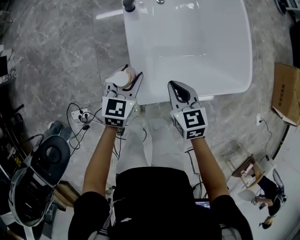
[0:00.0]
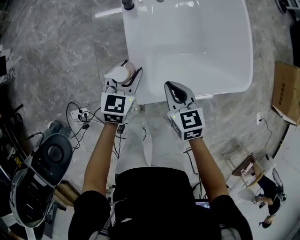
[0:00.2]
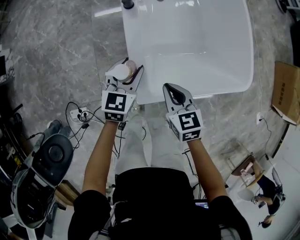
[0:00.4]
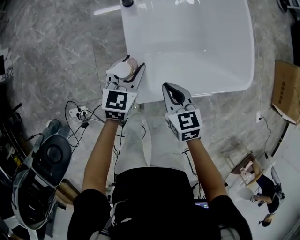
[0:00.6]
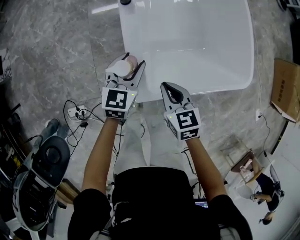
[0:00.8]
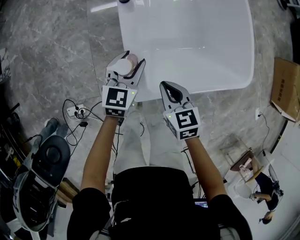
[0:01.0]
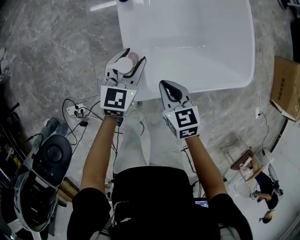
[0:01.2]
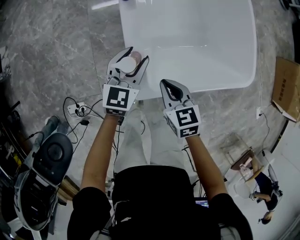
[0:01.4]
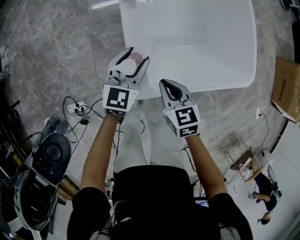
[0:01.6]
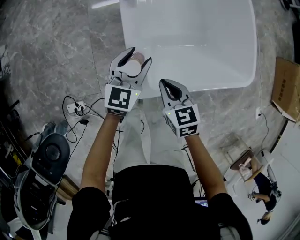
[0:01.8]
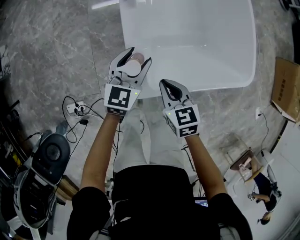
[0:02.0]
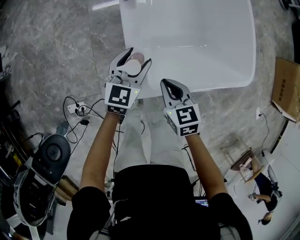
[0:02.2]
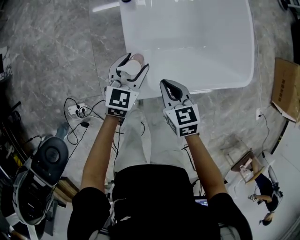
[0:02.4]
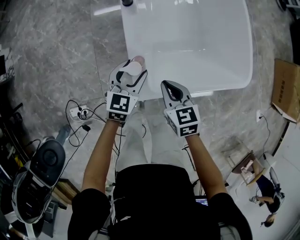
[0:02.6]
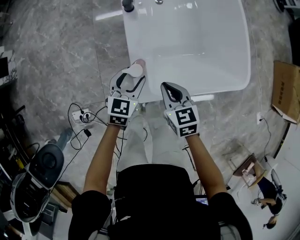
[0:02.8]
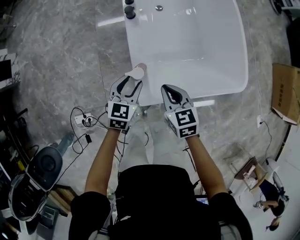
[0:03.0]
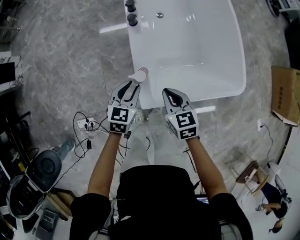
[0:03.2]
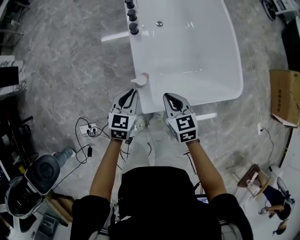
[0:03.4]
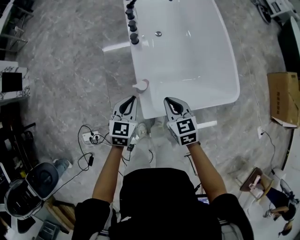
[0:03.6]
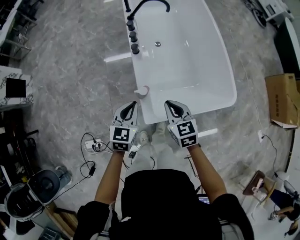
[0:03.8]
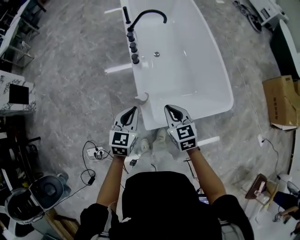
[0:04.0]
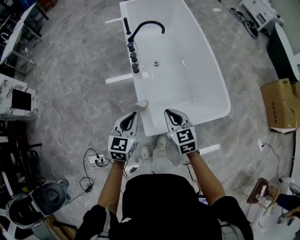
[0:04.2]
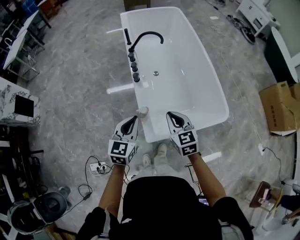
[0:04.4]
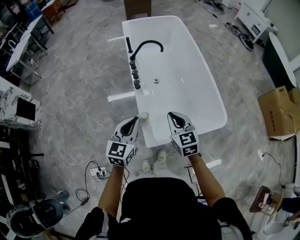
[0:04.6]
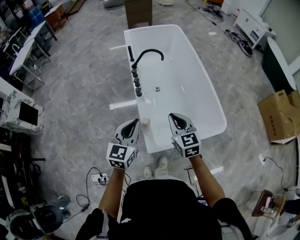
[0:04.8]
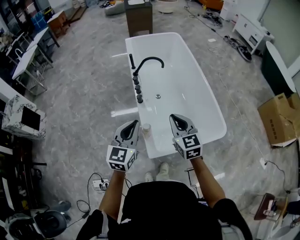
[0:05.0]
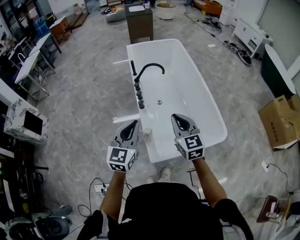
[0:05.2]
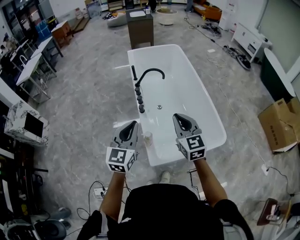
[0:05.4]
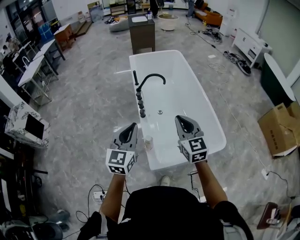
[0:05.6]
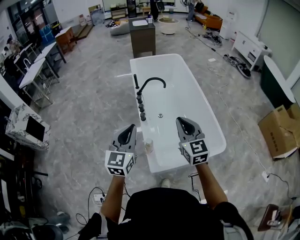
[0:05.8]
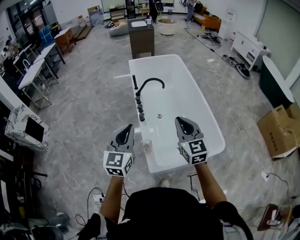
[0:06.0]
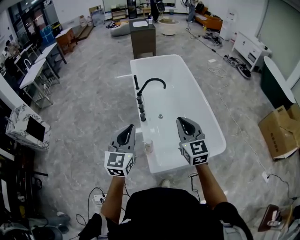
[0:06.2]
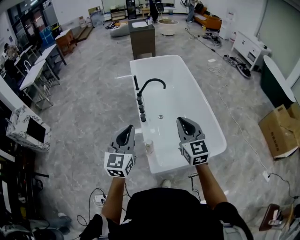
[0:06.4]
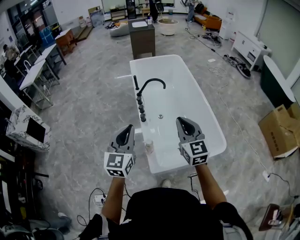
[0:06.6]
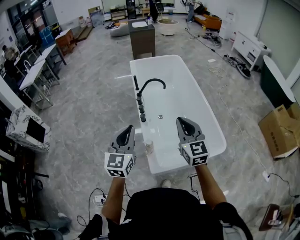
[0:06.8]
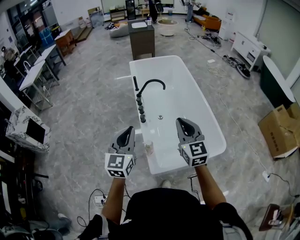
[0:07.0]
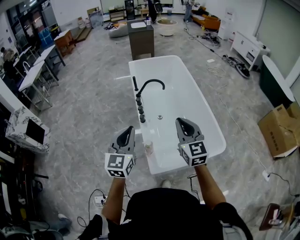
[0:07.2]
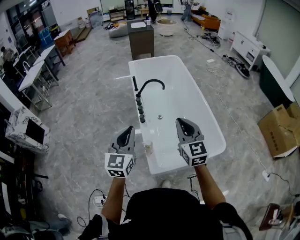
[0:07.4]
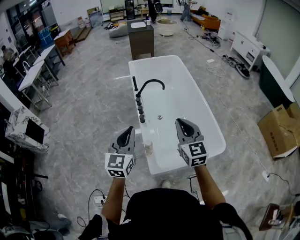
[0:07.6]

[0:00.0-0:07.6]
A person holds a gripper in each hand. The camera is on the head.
0:00.0 to 0:01.6: The left gripper ends up approximately 5 cm from where it was. Meanwhile the right gripper changes place by about 5 cm.
0:01.6 to 0:03.0: The left gripper shifts roughly 5 cm backward; the right gripper goes about 5 cm upward.
0:03.0 to 0:04.6: Both grippers travel together upward, approximately 30 cm. The left gripper swivels some 20 degrees, and closes up; the right gripper turns by some 20 degrees.
0:04.6 to 0:06.0: The two grippers go approximately 15 cm upward.
0:06.0 to 0:07.6: Both grippers stay about where they are.

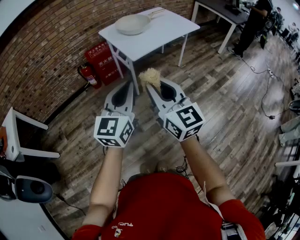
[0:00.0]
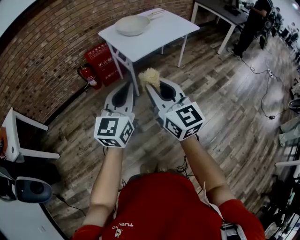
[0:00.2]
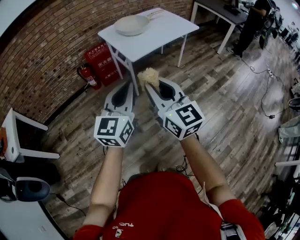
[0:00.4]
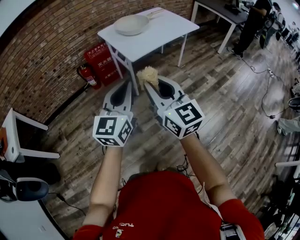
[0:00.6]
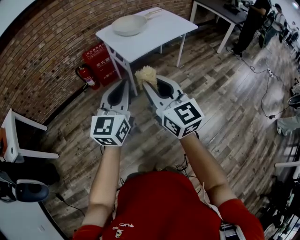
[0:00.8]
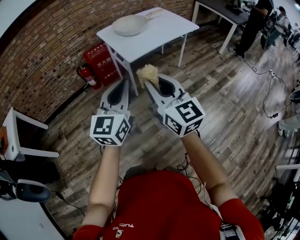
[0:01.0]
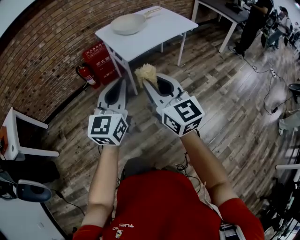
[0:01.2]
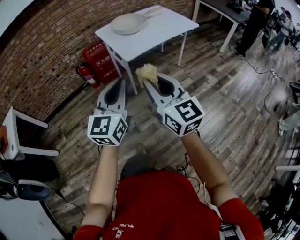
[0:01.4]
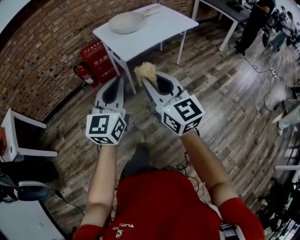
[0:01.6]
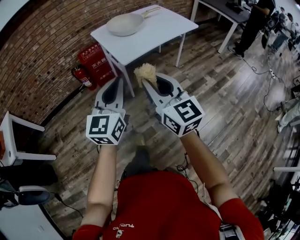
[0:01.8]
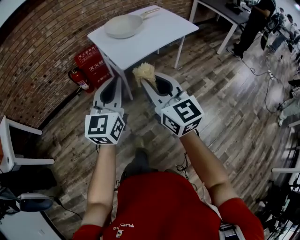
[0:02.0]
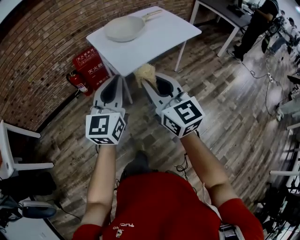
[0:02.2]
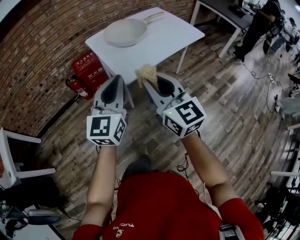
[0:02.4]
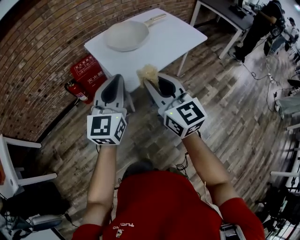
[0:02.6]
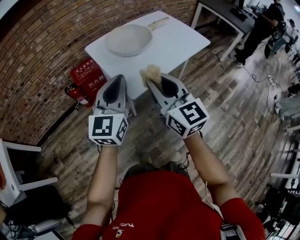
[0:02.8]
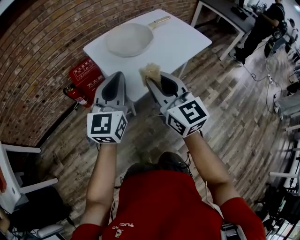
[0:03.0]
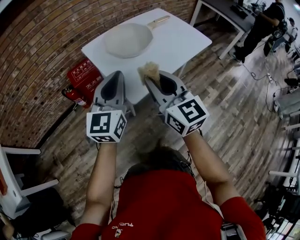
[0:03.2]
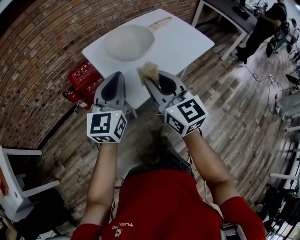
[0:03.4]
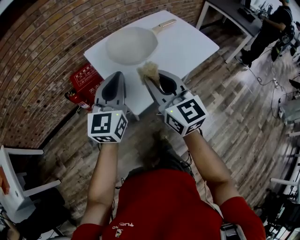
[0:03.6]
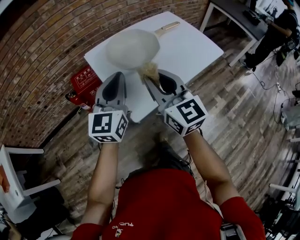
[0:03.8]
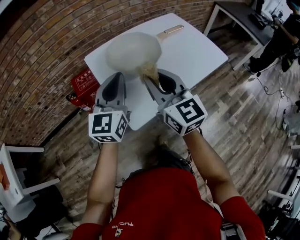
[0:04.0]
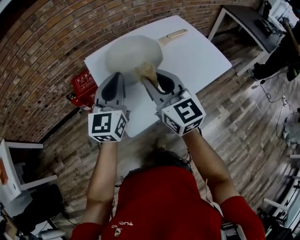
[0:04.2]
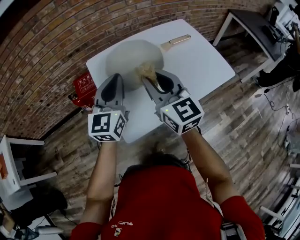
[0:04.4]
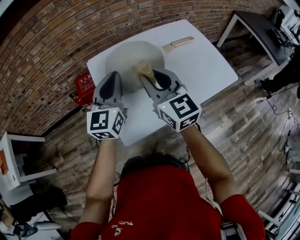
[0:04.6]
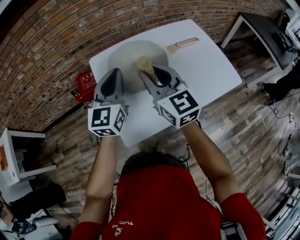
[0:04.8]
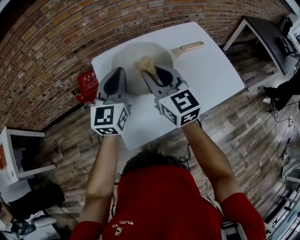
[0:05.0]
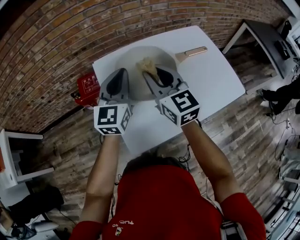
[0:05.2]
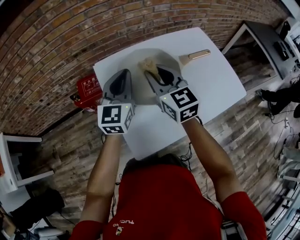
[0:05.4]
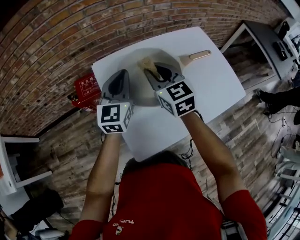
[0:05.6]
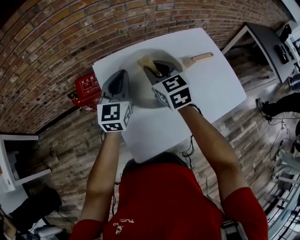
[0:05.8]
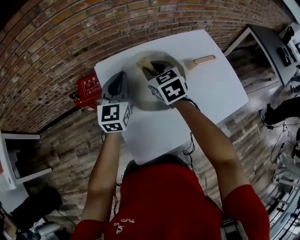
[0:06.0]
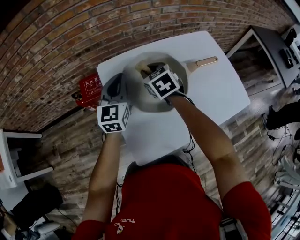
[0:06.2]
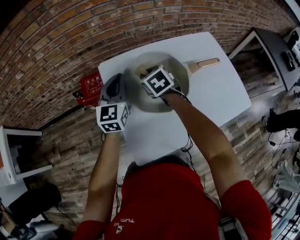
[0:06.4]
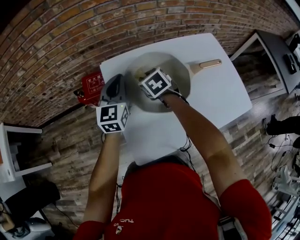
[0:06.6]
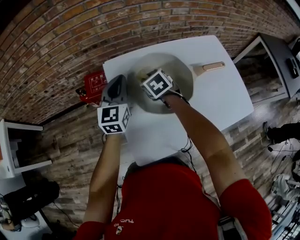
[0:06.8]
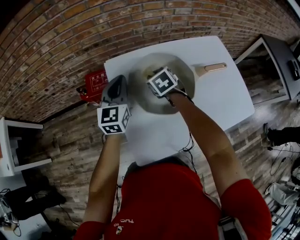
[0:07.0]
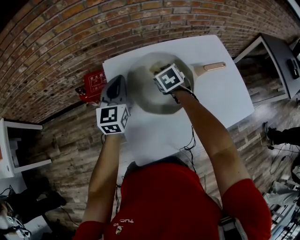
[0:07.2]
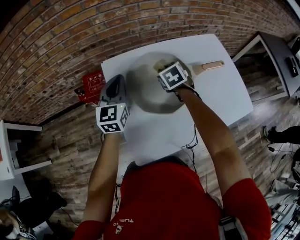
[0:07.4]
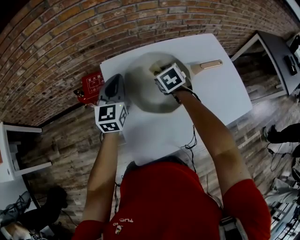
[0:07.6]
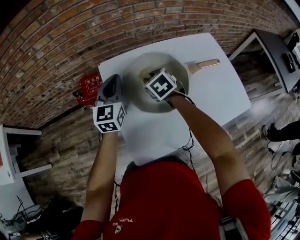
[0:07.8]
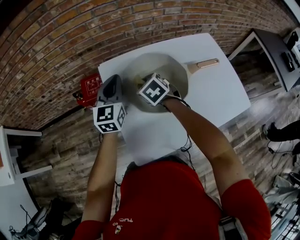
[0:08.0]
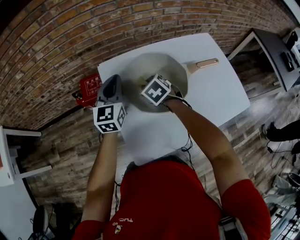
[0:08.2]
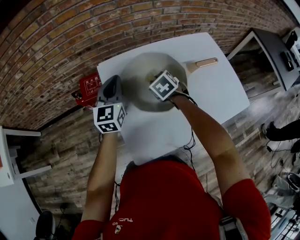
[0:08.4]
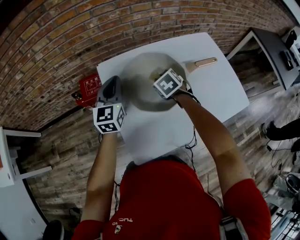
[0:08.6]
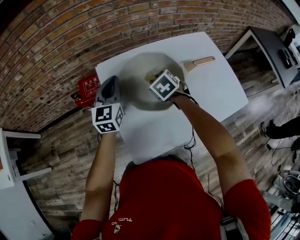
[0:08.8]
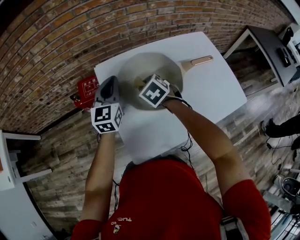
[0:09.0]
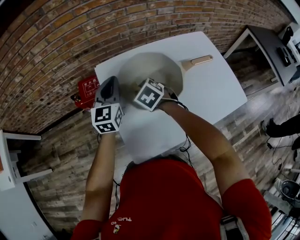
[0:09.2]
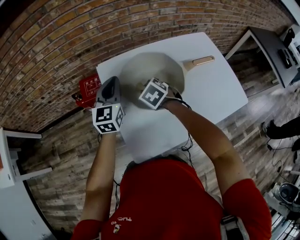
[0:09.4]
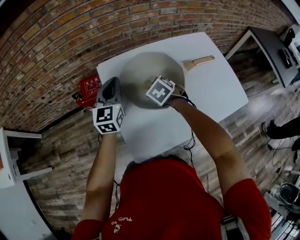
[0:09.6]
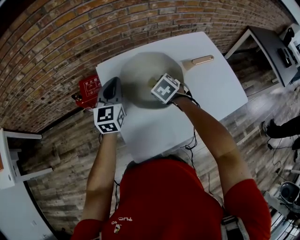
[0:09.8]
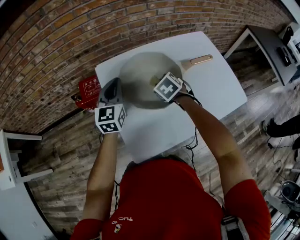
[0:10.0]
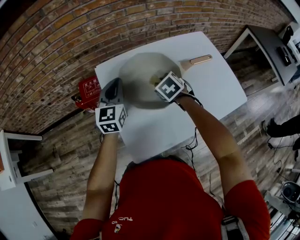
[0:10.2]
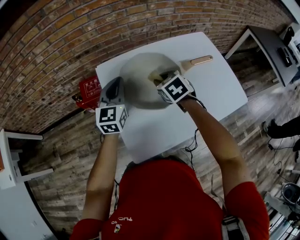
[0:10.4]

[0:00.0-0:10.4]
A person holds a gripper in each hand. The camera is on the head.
0:00.0 to 0:01.4: The right gripper shifts about 5 cm to the right.
0:01.4 to 0:03.0: Both grippers move forward, some 35 cm.
0:03.0 to 0:04.4: Both grippers move forward, about 25 cm.
0:04.4 to 0:06.0: The left gripper shifts roughly 20 cm forward. Meanwhile the right gripper heads forward and downward, covering approximately 25 cm, and points its fingers approximately 30 degrees further downward.
0:06.0 to 0:07.4: The right gripper is displaced downward and to the right by some 10 cm, and turns by some 20 degrees.
0:07.4 to 0:09.0: The right gripper goes left and right, approximately 10 cm each way, reversing 2 times.
0:09.0 to 0:10.4: The right gripper is displaced to the right by roughly 5 cm.

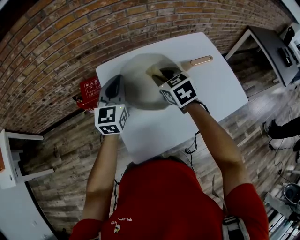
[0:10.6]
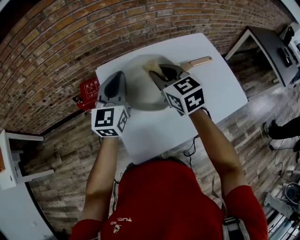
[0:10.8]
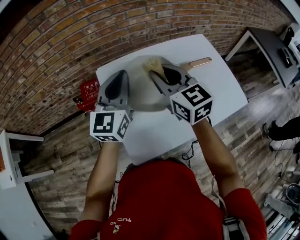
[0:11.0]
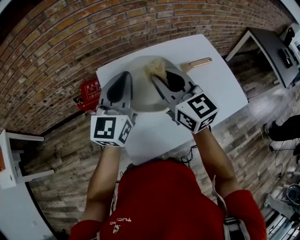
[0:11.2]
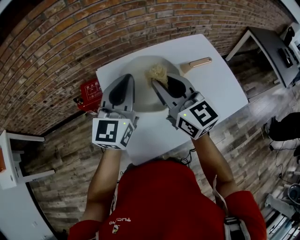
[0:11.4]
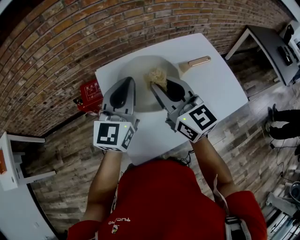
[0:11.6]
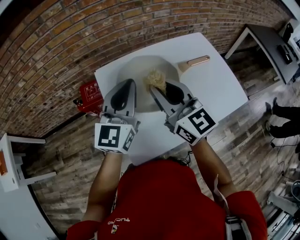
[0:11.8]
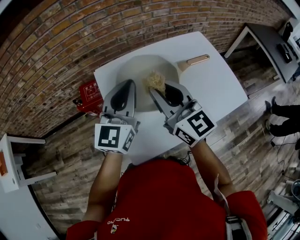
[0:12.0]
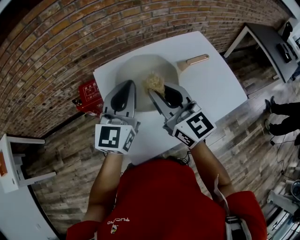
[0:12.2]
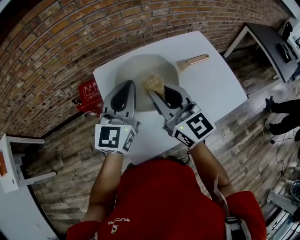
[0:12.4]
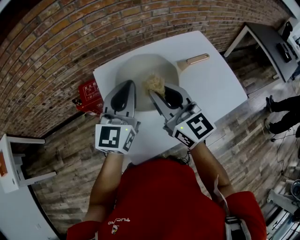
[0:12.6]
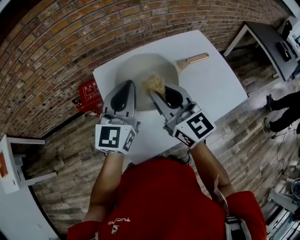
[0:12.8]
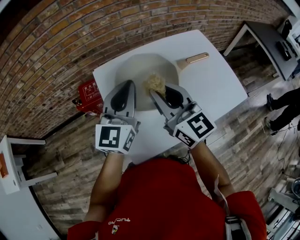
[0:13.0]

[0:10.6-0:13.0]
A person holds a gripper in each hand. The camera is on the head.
0:10.6 to 0:11.8: The right gripper heads upward and backward, covering approximately 15 cm, and points its fingers roughly 40 degrees further upward. The left gripper is displaced upward, backward and to the right by some 10 cm.
0:11.8 to 0:13.0: The grippers stay close to where they were, moving slightly.

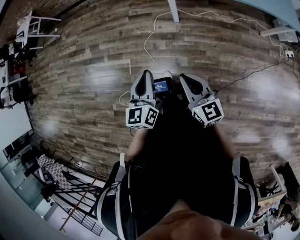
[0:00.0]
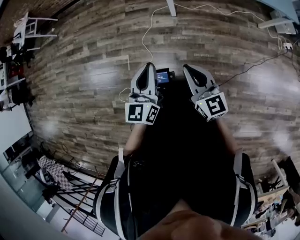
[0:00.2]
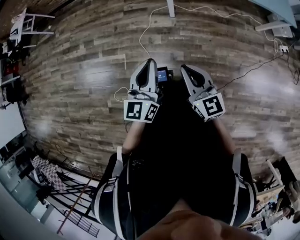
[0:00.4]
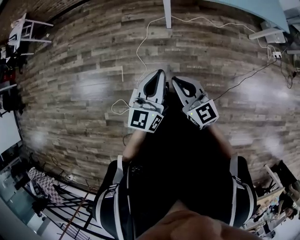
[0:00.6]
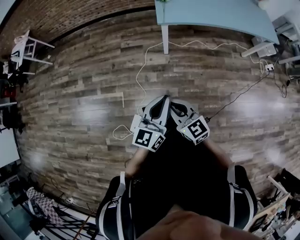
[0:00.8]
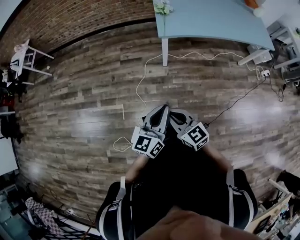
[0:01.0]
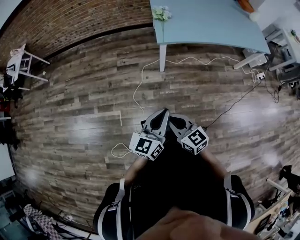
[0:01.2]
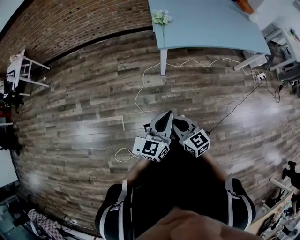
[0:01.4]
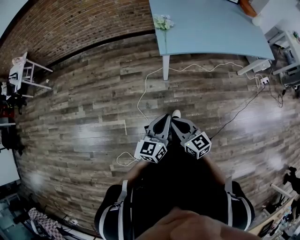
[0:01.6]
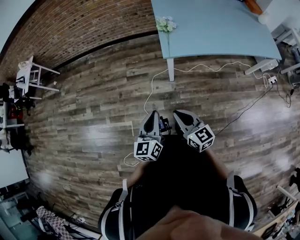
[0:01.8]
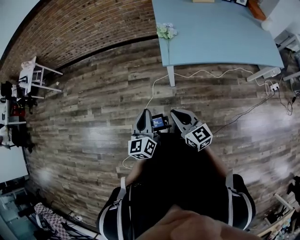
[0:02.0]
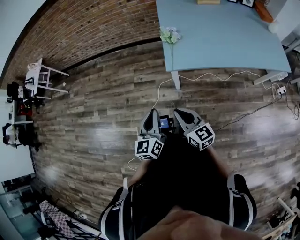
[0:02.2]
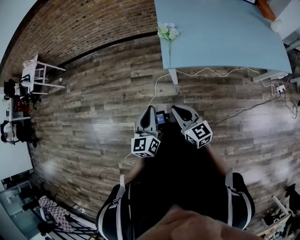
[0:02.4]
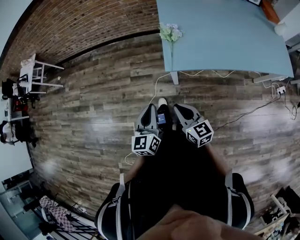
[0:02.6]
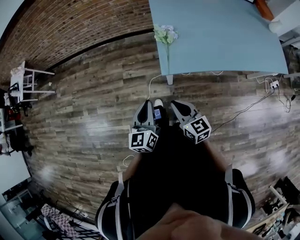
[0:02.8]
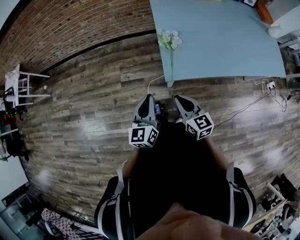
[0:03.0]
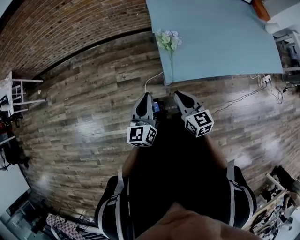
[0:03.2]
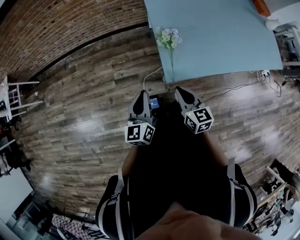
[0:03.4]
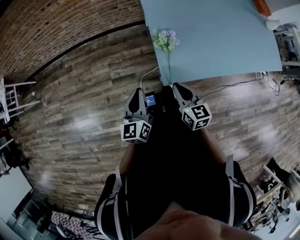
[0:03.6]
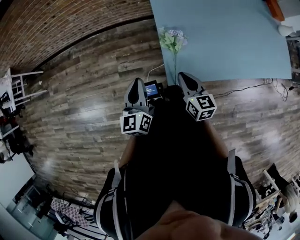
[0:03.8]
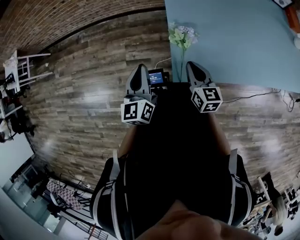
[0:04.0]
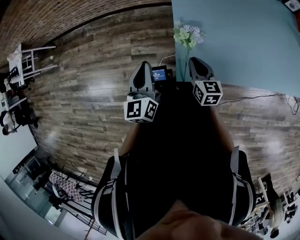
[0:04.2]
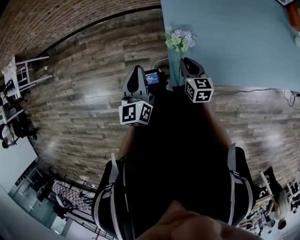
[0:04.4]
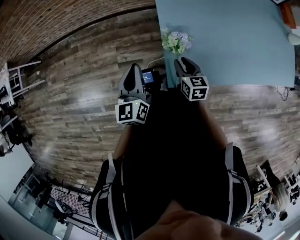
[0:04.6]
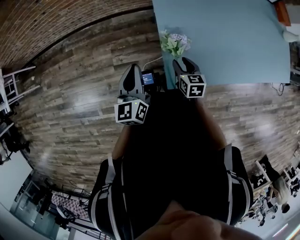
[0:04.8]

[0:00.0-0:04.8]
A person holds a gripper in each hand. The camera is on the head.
0:00.0 to 0:01.6: The right gripper is displaced forward and to the left by some 15 cm. Meanwhile the left gripper goes approximately 10 cm forward, and changes its angle by about 30 degrees.
0:01.6 to 0:03.2: The two grippers travel together, forward, roughly 40 cm.
0:03.2 to 0:04.8: The left gripper moves forward, roughly 20 cm. The right gripper travels forward and downward by approximately 25 cm, turns by some 20 degrees, and opens its fingers.
